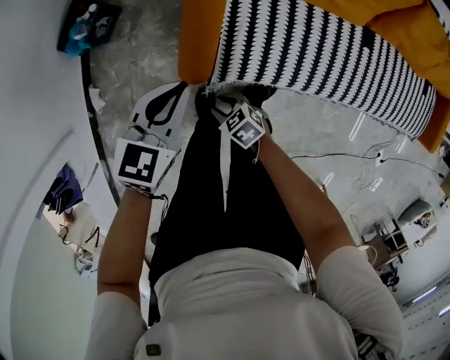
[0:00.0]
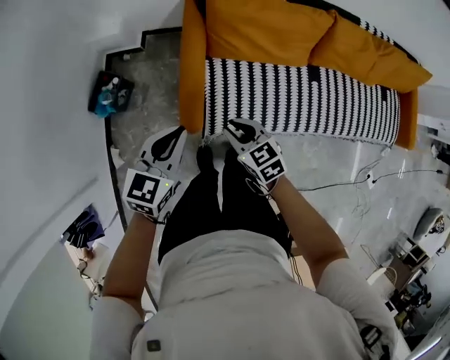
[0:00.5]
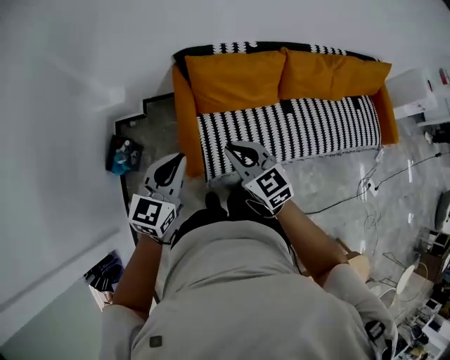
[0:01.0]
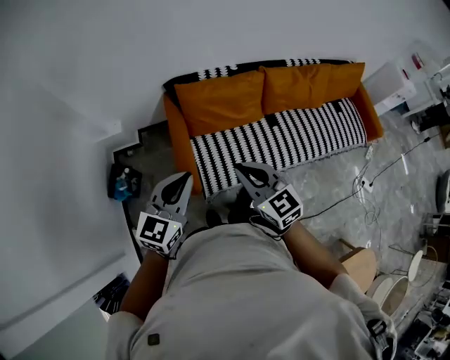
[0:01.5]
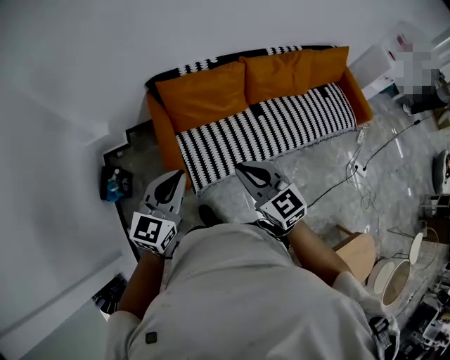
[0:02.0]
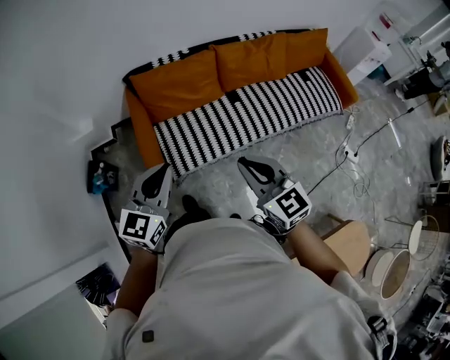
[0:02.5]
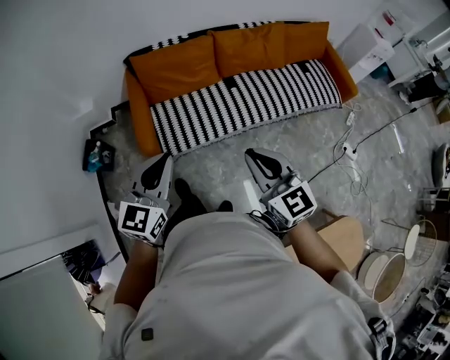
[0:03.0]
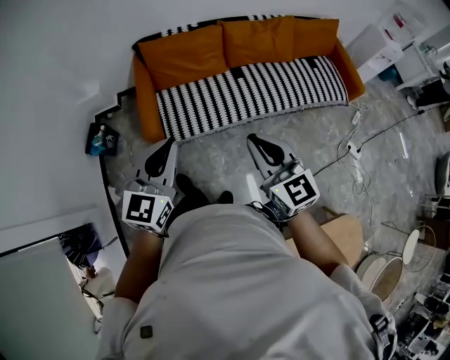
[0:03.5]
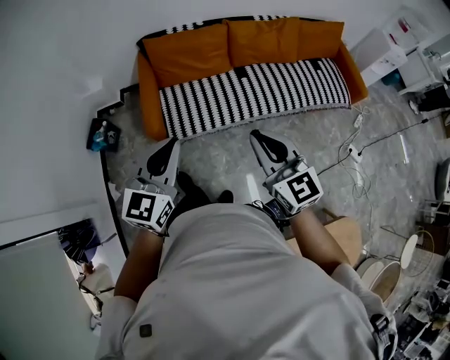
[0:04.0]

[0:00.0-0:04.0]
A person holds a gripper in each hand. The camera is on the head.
0:00.0 to 0:02.0: The grippers both shift upward by some 60 cm. The left gripper swivels roughly 30 degrees, while the right gripper points its fingers roughly 40 degrees further upward, and closes up.
0:02.0 to 0:04.0: The right gripper travels to the right and backward by some 30 cm. Meanwhile the left gripper heads backward and to the right, covering some 30 cm.

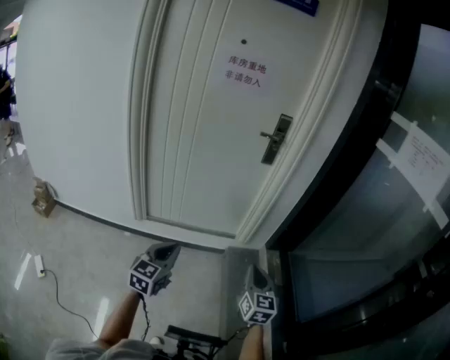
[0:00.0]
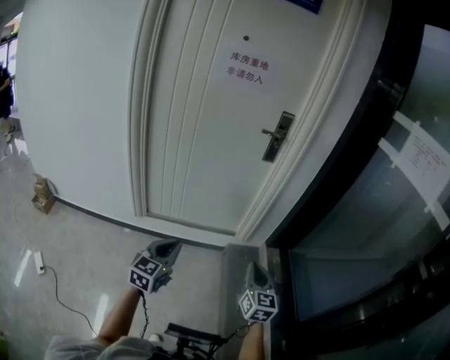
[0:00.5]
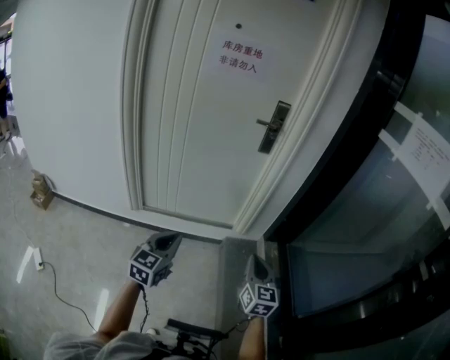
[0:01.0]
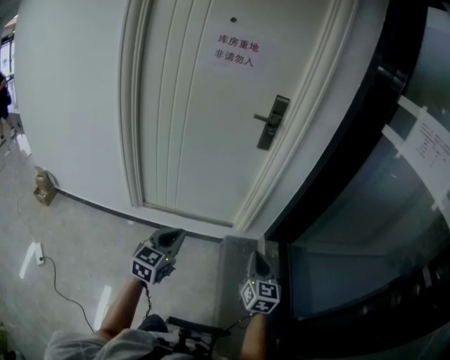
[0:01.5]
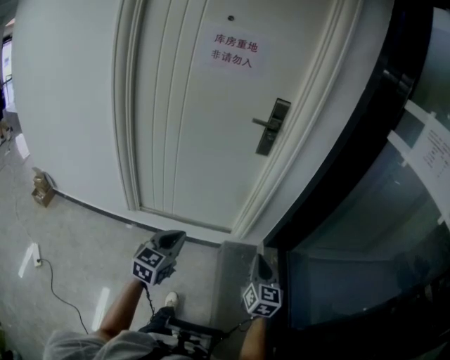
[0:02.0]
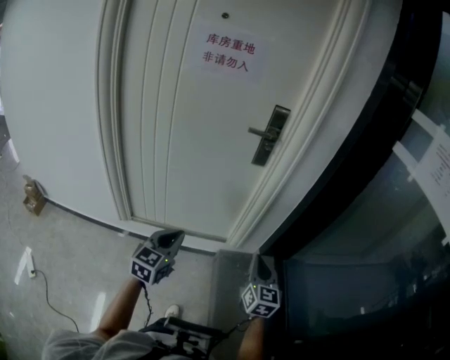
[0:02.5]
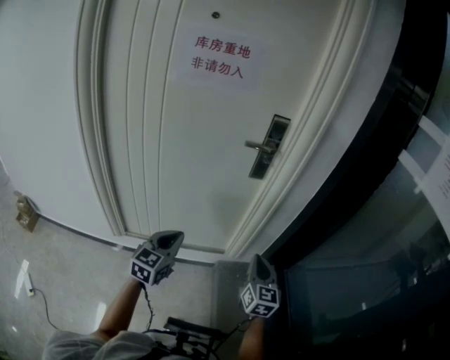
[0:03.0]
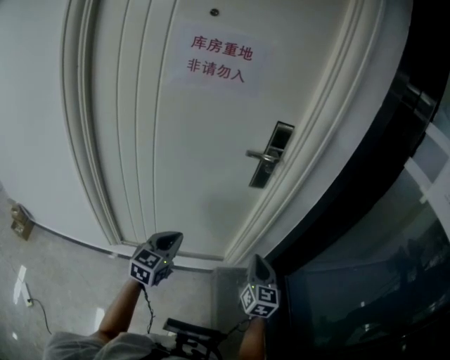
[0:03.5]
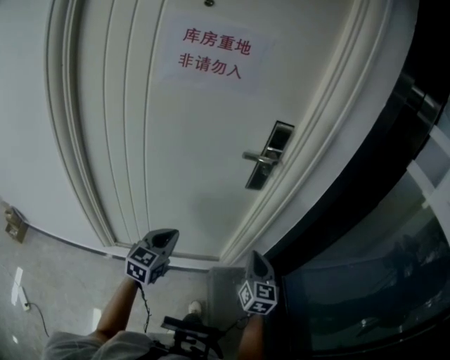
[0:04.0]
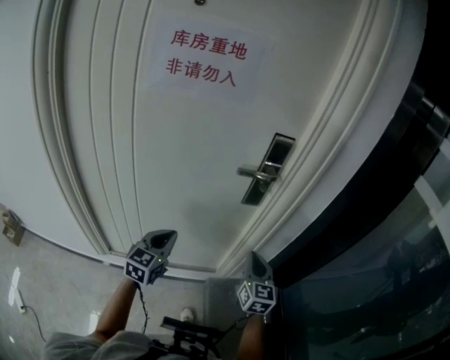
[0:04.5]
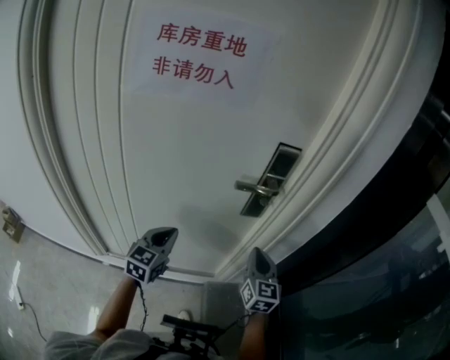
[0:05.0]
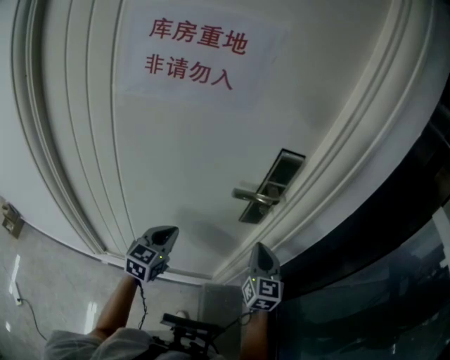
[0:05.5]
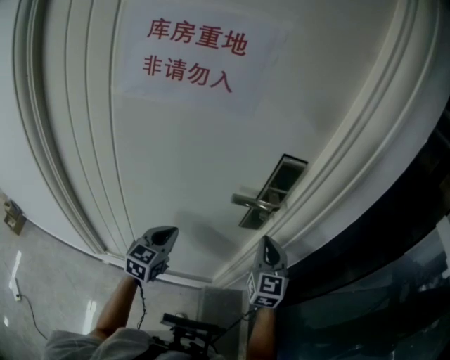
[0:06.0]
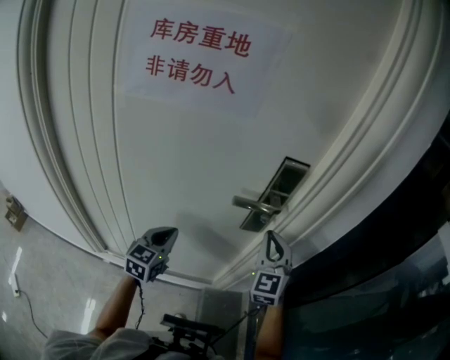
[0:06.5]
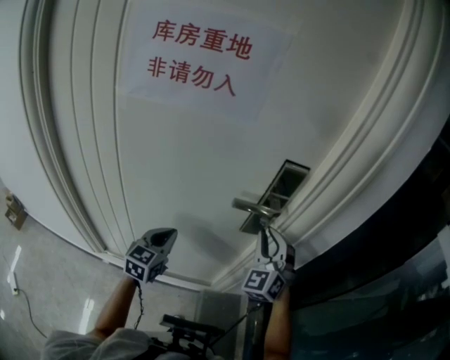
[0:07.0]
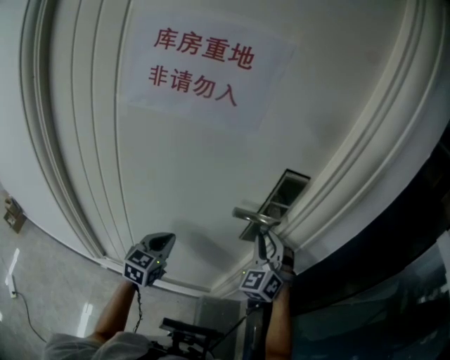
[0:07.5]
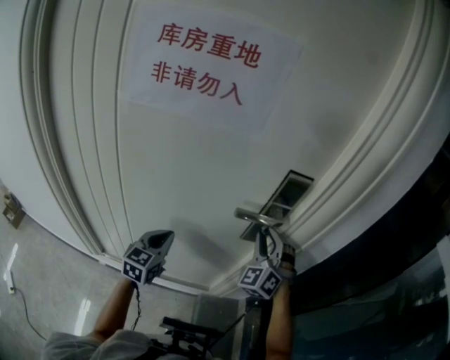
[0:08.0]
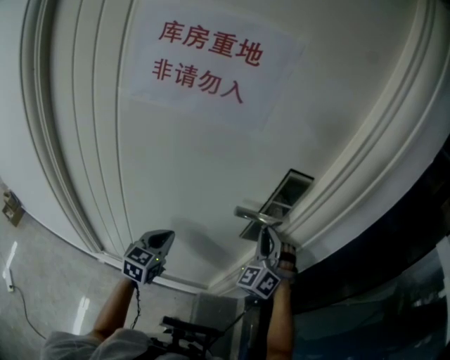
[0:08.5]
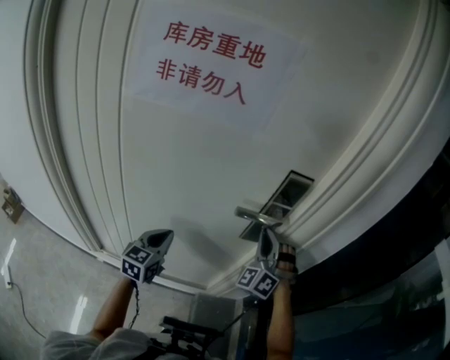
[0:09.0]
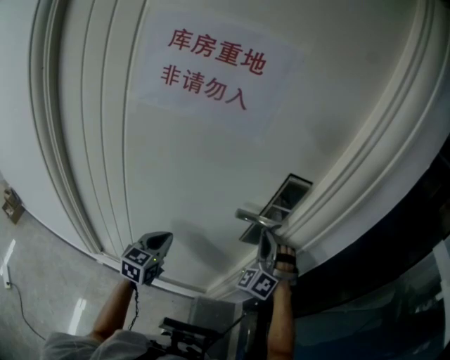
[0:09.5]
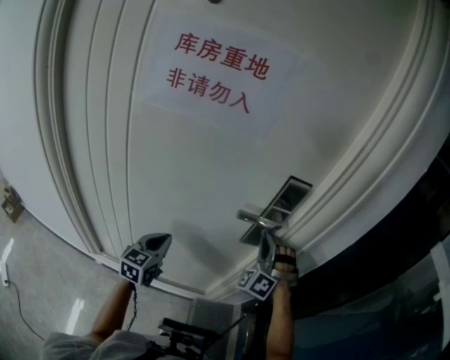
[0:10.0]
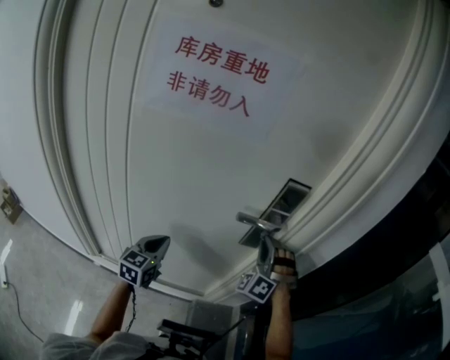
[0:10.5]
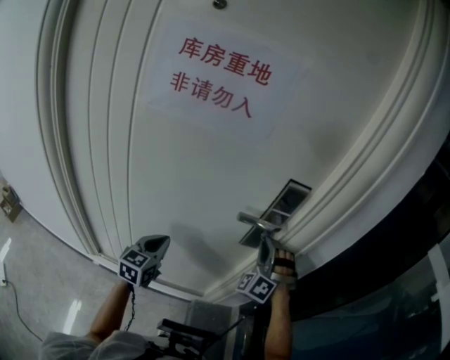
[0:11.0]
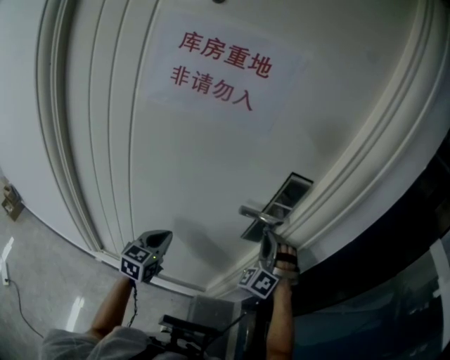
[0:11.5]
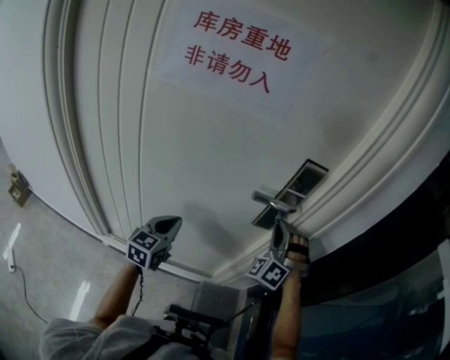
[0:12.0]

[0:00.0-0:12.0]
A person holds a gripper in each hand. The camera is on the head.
0:00.0 to 0:02.0: The two grippers go about 15 cm forward and to the right.
0:02.0 to 0:04.0: The two grippers go roughly 30 cm forward.
0:04.0 to 0:06.0: The grippers both shift forward by about 20 cm.
0:06.0 to 0:08.0: The right gripper heads forward, covering about 5 cm, rotates around the line of its fingers by approximately 50 degrees, counterclockwise from behind, and opens up.
0:08.0 to 0:10.0: The right gripper rotates approximately 20 degrees, and closes.
0:10.0 to 0:12.0: Neither gripper changes place.

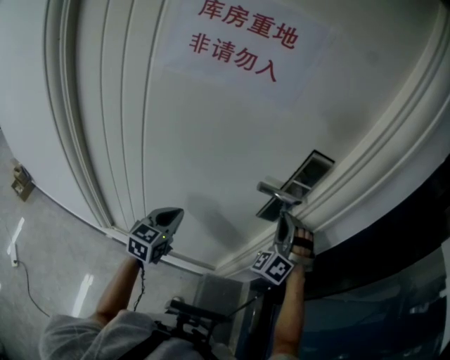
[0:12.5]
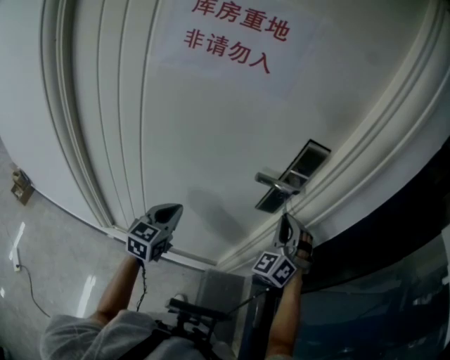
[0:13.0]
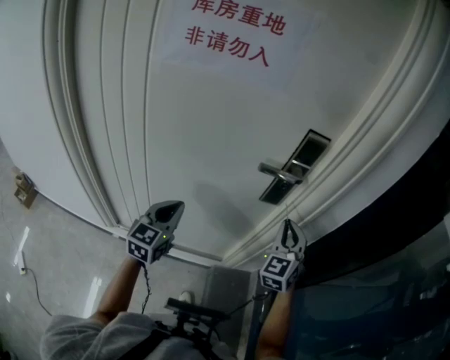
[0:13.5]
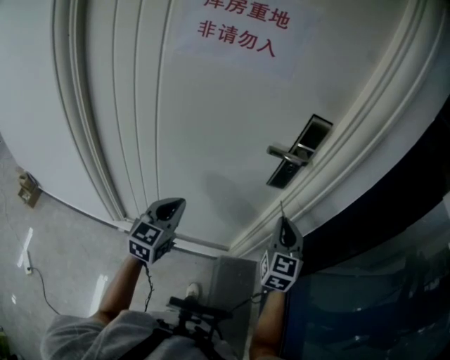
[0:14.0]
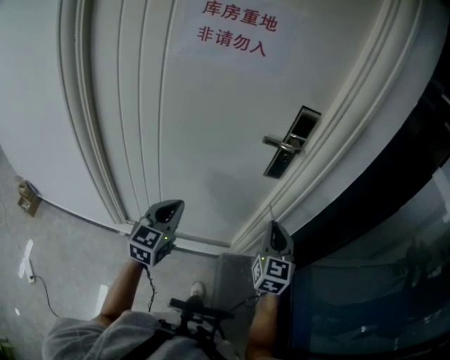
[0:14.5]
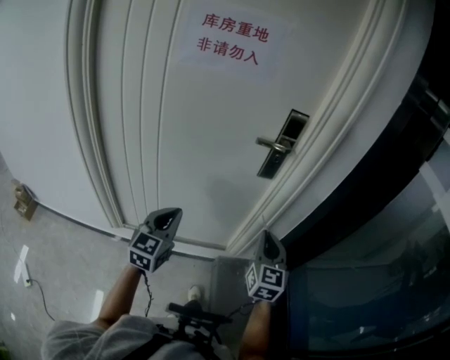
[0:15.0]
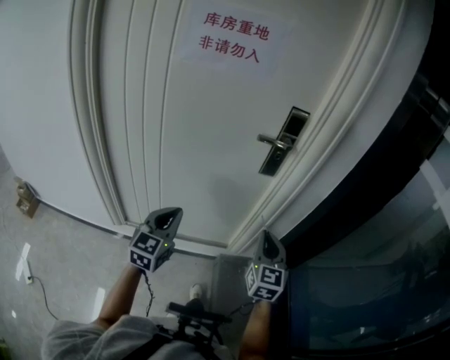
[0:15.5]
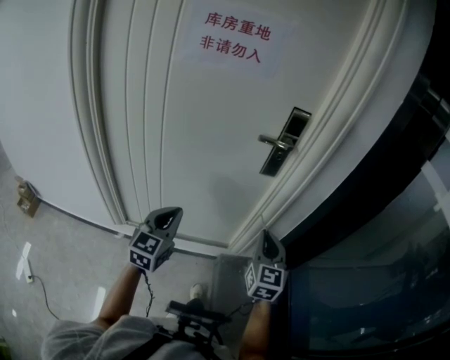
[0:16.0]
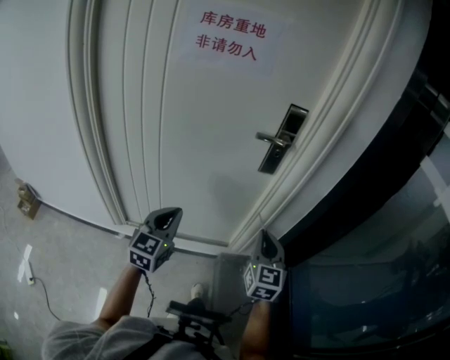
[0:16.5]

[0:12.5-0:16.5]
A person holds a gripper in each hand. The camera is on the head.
0:12.5 to 0:14.5: Both grippers move backward, about 20 cm. The right gripper rolls clockwise, seen from behind, by approximately 80 degrees.
0:14.5 to 0:16.5: Both grippers travel together backward, about 5 cm.

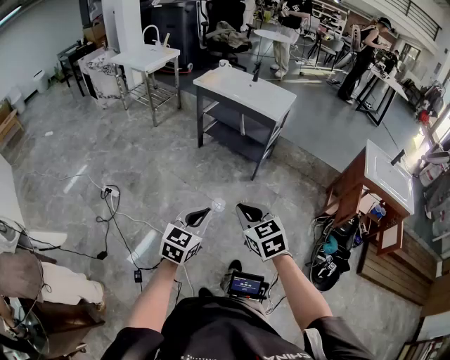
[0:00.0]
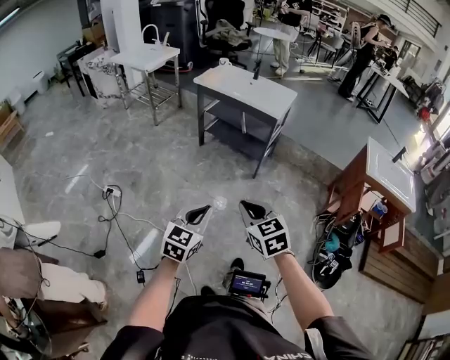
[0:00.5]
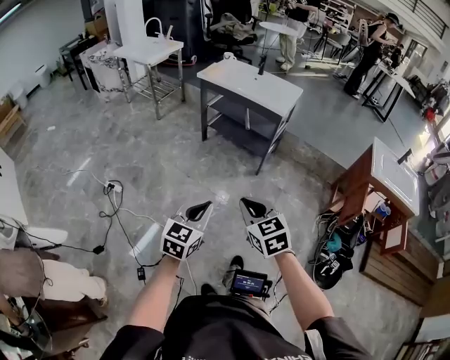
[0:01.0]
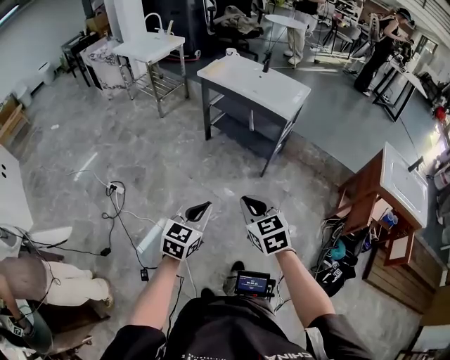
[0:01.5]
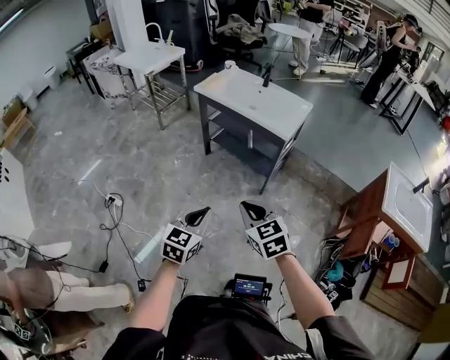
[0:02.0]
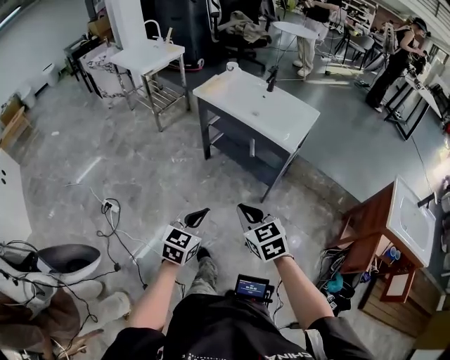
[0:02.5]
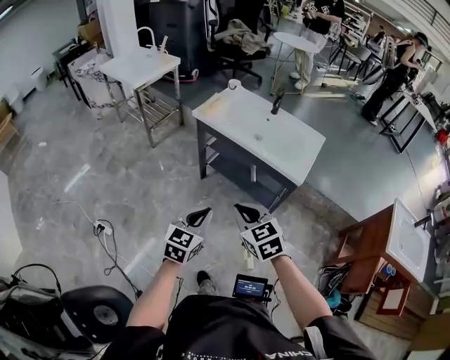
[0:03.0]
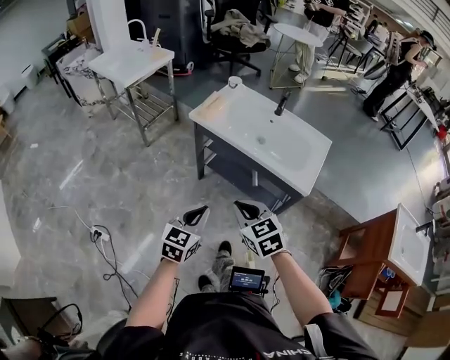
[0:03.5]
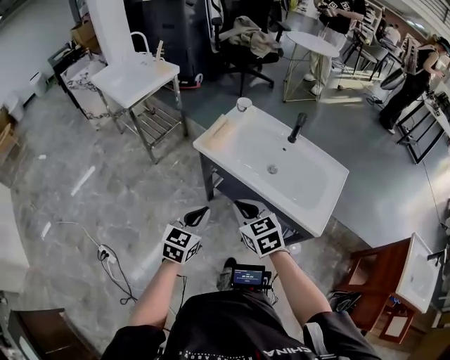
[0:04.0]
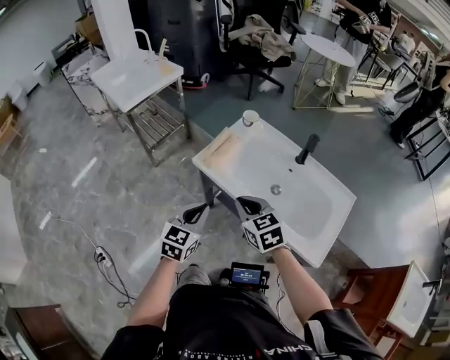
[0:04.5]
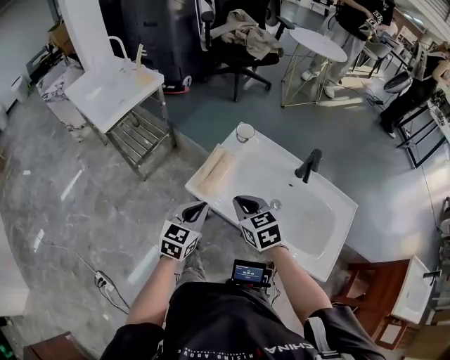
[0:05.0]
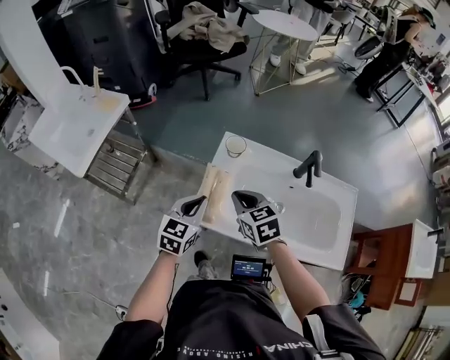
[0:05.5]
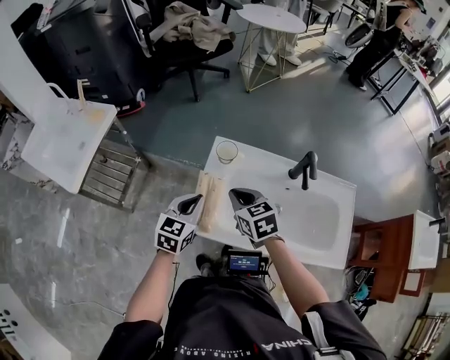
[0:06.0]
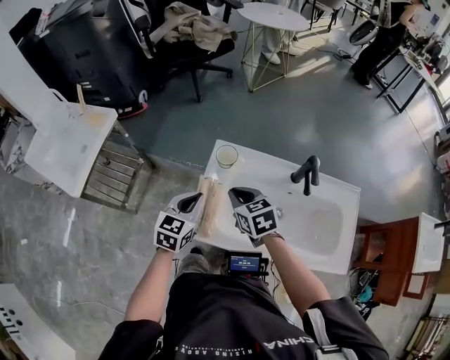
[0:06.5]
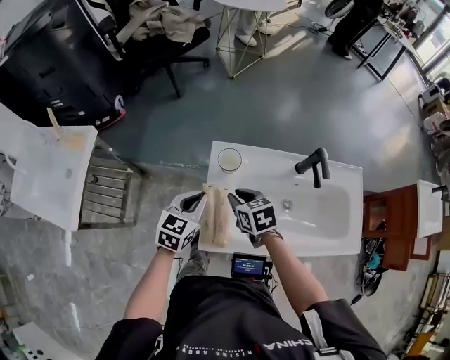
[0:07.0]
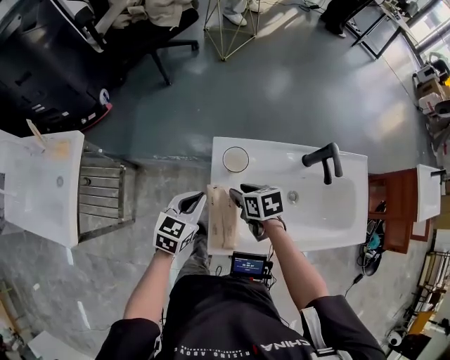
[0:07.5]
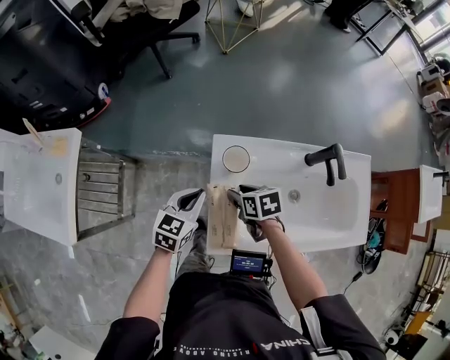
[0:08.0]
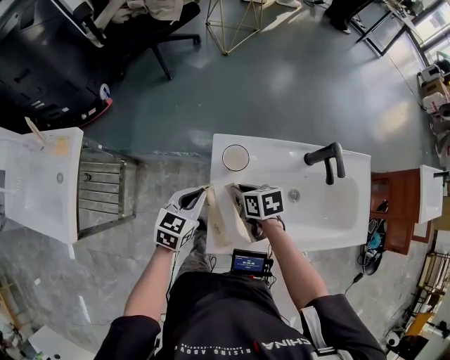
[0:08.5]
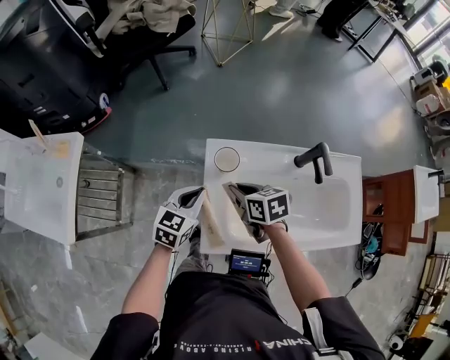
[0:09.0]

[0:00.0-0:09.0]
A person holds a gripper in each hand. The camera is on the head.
0:00.0 to 0:02.0: Both grippers move forward, roughly 25 cm.
0:02.0 to 0:04.5: The pair of grippers is taken forward, roughly 70 cm.
0:04.5 to 0:07.0: The right gripper shifts by roughly 35 cm, and changes its angle by approximately 40 degrees; the left gripper shifts by roughly 40 cm, and swivels about 40 degrees.
0:07.0 to 0:09.0: The right gripper reaches some 10 cm downward, then returns, and opens, then closes once more.
